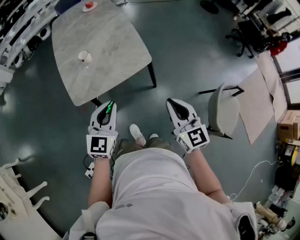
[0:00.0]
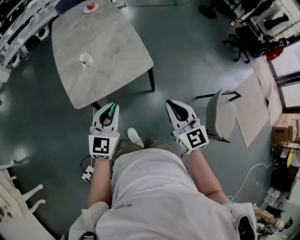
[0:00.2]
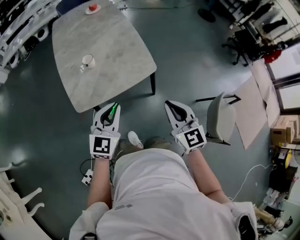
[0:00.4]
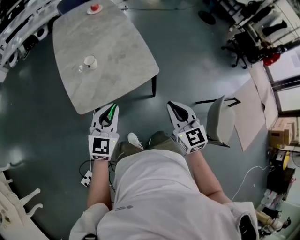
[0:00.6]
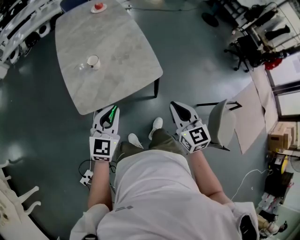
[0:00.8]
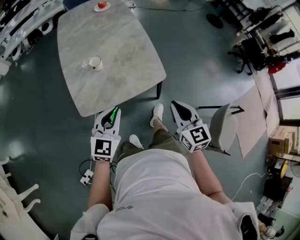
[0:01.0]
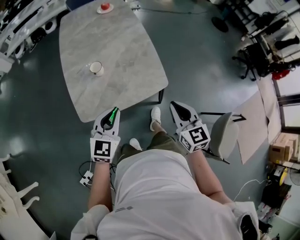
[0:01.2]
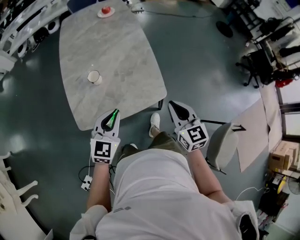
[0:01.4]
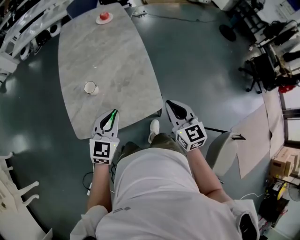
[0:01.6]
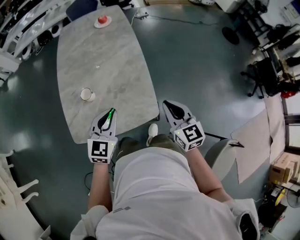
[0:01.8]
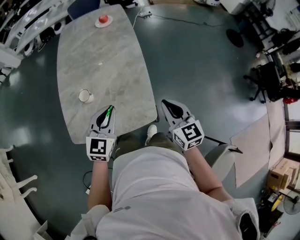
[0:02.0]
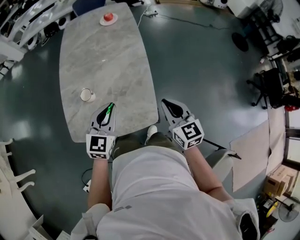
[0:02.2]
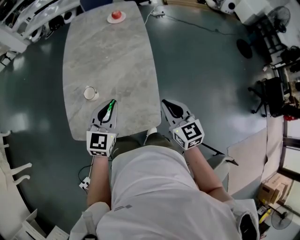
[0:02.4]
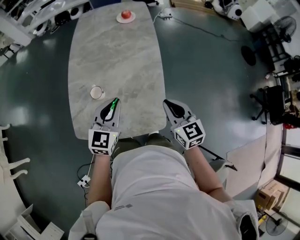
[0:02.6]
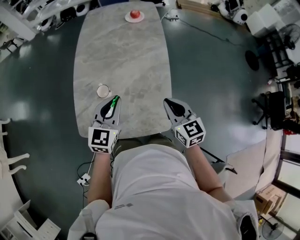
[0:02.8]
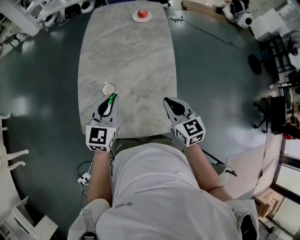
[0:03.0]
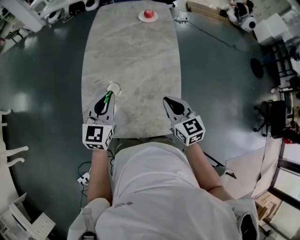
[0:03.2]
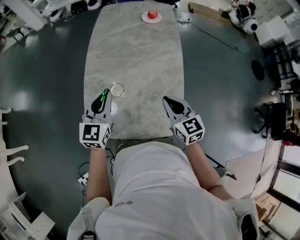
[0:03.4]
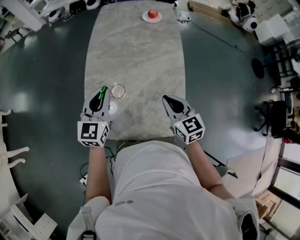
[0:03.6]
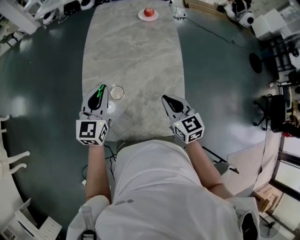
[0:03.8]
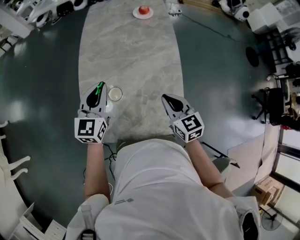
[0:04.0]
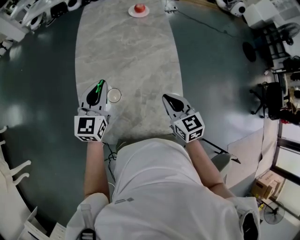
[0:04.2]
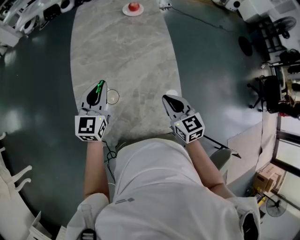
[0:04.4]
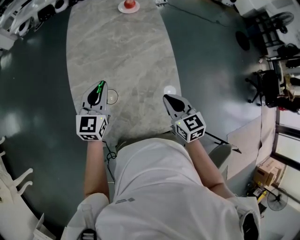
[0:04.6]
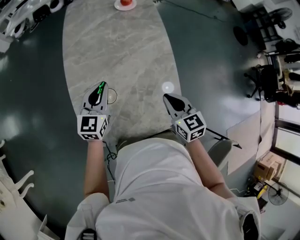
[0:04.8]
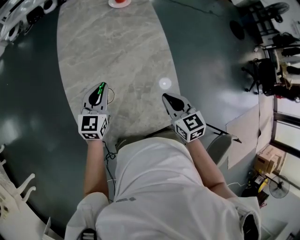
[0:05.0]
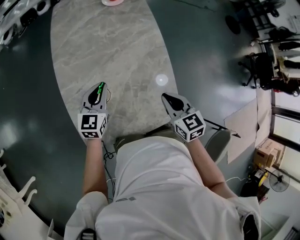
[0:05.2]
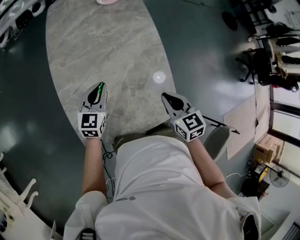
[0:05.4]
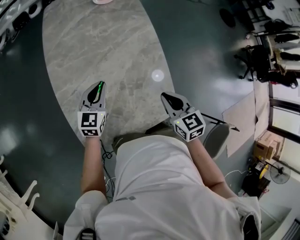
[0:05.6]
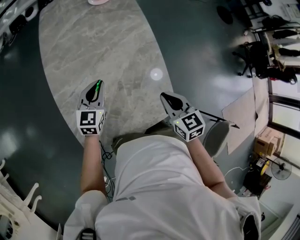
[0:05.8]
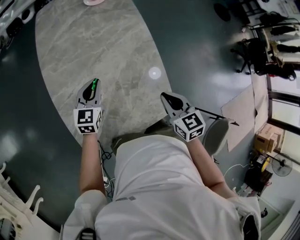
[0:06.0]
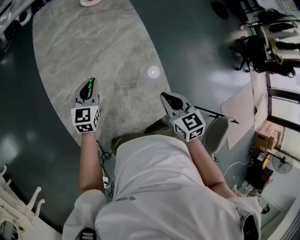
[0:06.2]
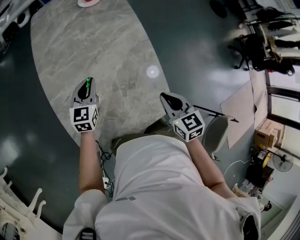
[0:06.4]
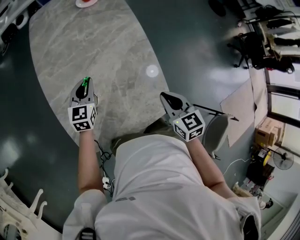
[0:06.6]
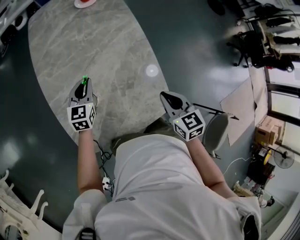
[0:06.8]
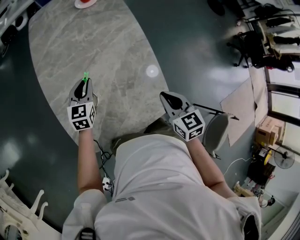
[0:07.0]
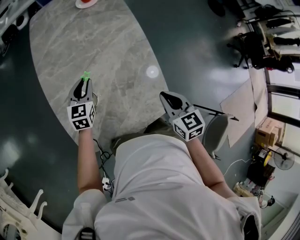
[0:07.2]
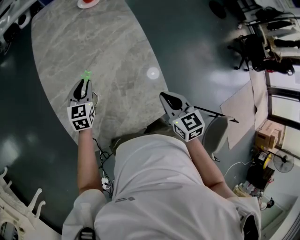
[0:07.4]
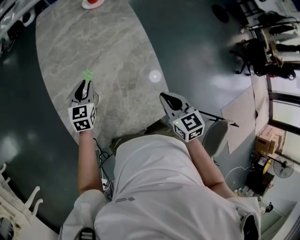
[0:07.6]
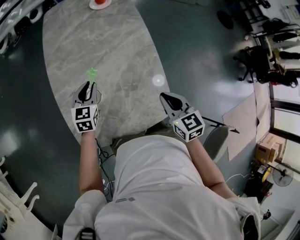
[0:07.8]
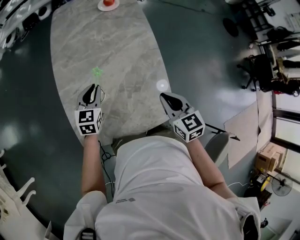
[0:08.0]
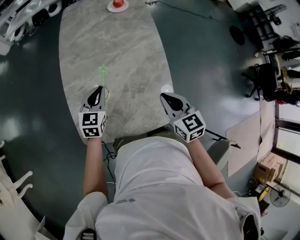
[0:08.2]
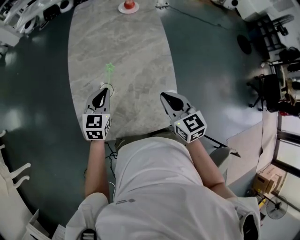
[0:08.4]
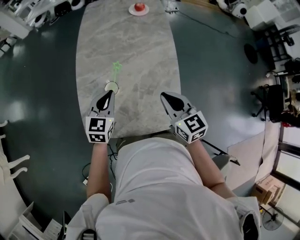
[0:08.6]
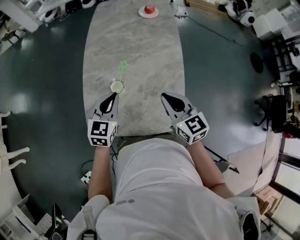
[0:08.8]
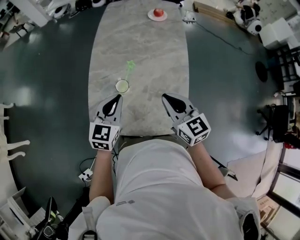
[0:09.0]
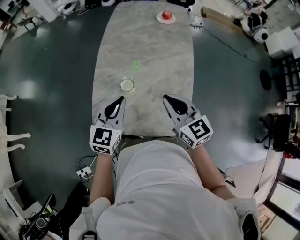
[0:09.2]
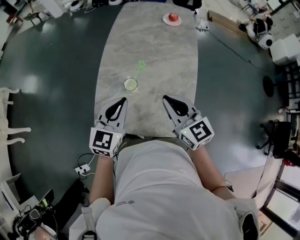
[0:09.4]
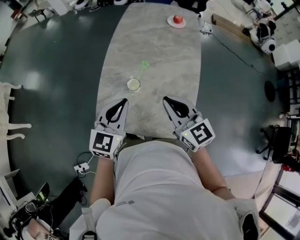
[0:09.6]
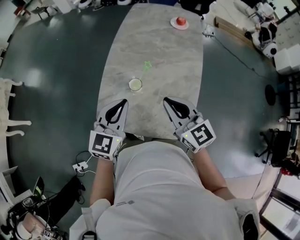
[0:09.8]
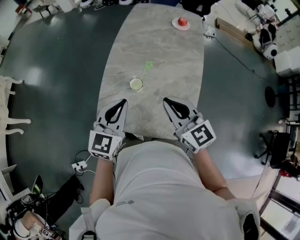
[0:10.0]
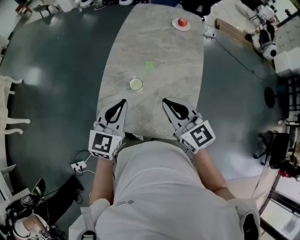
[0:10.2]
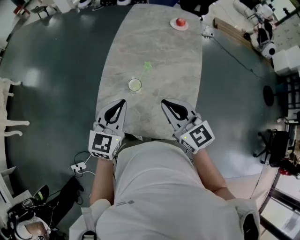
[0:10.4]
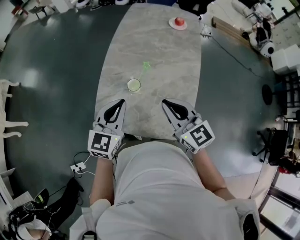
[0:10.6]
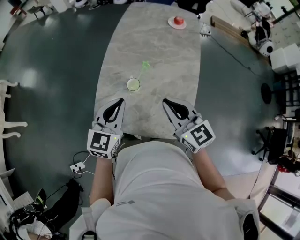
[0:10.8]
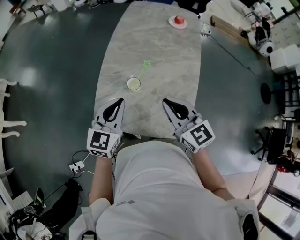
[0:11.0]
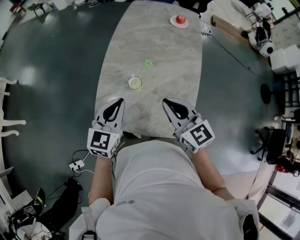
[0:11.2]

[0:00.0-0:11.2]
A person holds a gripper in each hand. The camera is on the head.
0:00.0 to 0:01.6: Both grippers travel together forward, about 25 cm.
0:01.6 to 0:03.2: Both grippers move forward and to the left, roughly 20 cm. The left gripper changes its angle by about 20 degrees. Meanwhile the right gripper turns by roughly 20 degrees.
0:03.2 to 0:04.8: The left gripper heads forward and downward, covering about 15 cm. Meanwhile the right gripper changes place by some 5 cm.
0:04.8 to 0:06.4: The right gripper heads to the right, covering some 5 cm. Meanwhile the left gripper is displaced downward by approximately 10 cm.
0:06.4 to 0:08.0: The left gripper changes place by approximately 5 cm.
0:08.0 to 0:09.6: The right gripper moves upward and to the left, roughly 15 cm, and turns by approximately 40 degrees; the left gripper goes roughly 25 cm upward and backward.
0:09.6 to 0:11.2: The grippers make only small movements.

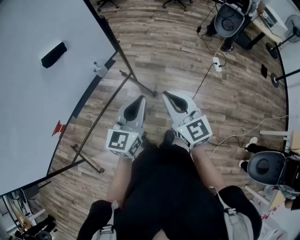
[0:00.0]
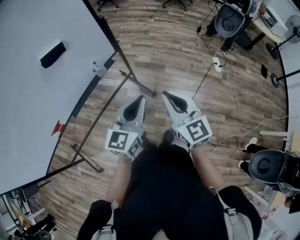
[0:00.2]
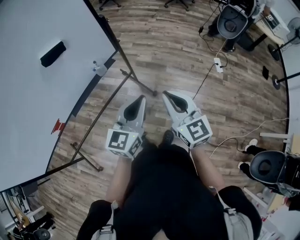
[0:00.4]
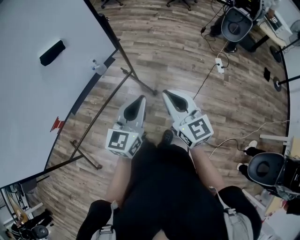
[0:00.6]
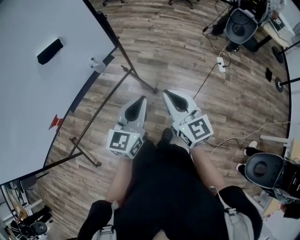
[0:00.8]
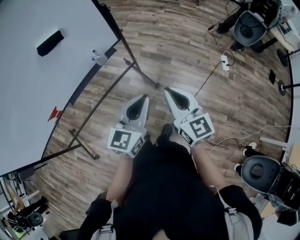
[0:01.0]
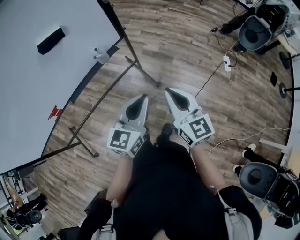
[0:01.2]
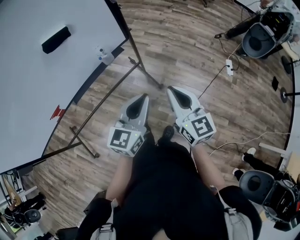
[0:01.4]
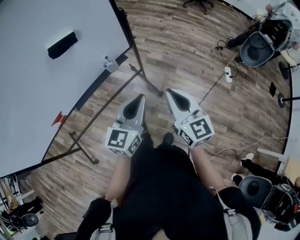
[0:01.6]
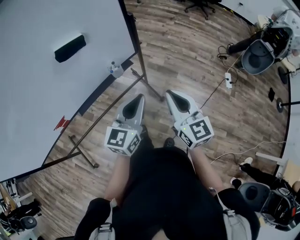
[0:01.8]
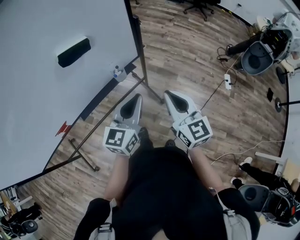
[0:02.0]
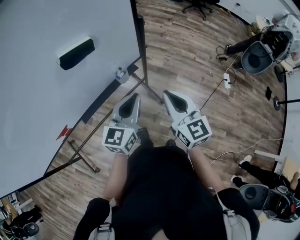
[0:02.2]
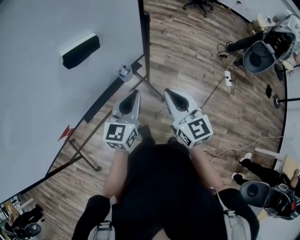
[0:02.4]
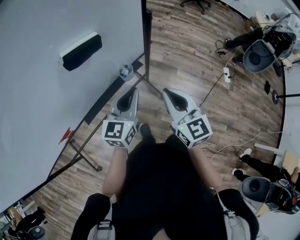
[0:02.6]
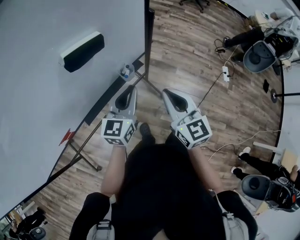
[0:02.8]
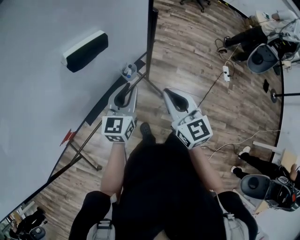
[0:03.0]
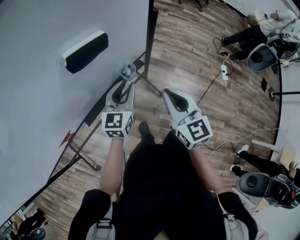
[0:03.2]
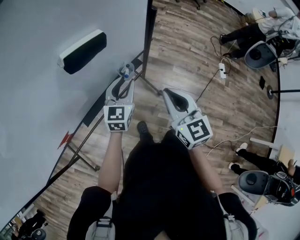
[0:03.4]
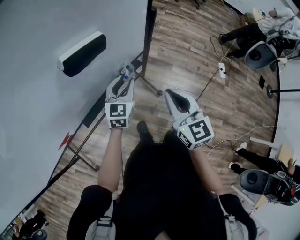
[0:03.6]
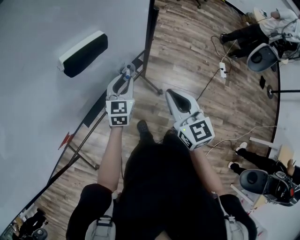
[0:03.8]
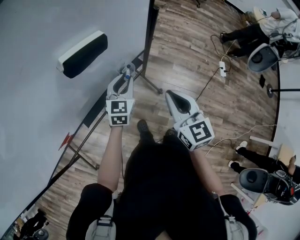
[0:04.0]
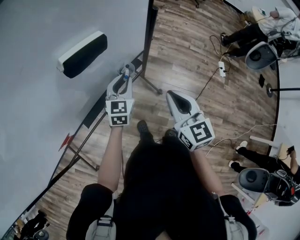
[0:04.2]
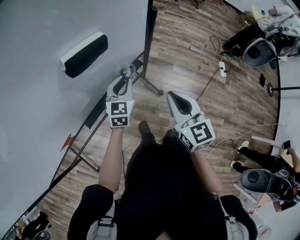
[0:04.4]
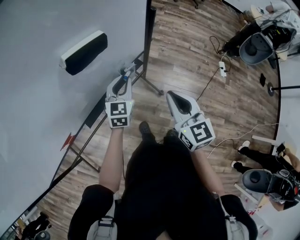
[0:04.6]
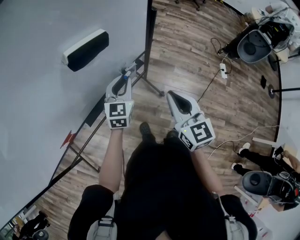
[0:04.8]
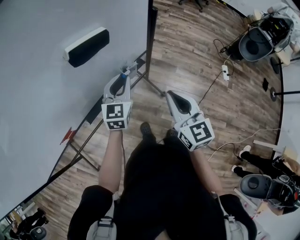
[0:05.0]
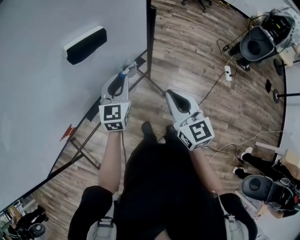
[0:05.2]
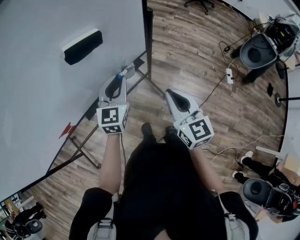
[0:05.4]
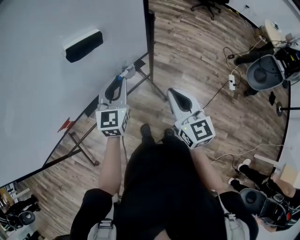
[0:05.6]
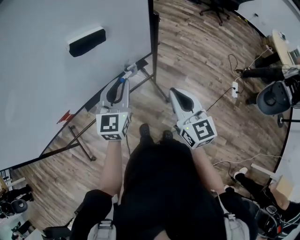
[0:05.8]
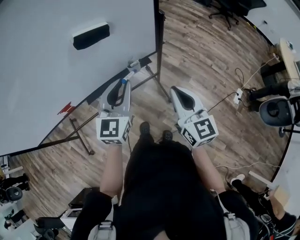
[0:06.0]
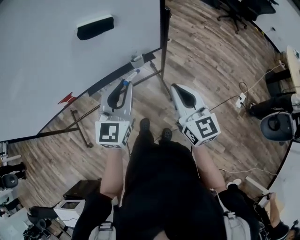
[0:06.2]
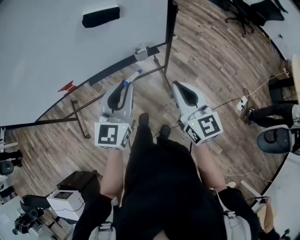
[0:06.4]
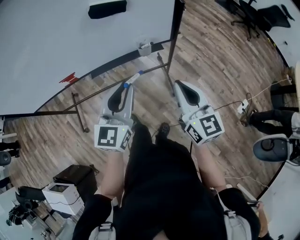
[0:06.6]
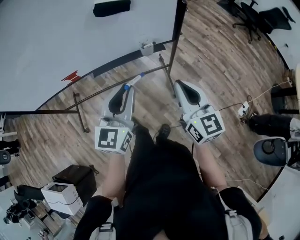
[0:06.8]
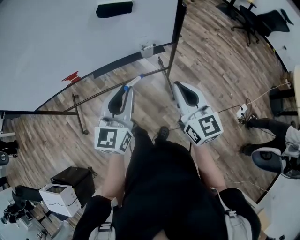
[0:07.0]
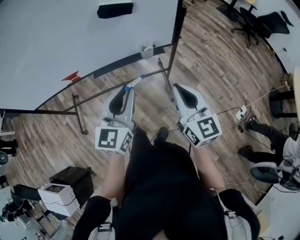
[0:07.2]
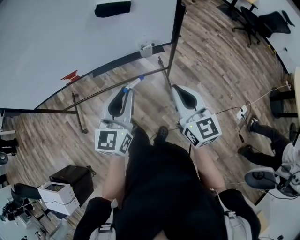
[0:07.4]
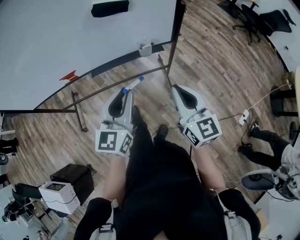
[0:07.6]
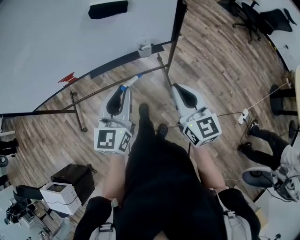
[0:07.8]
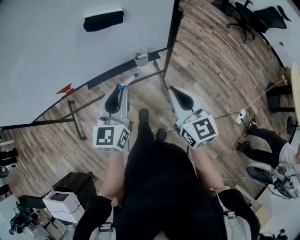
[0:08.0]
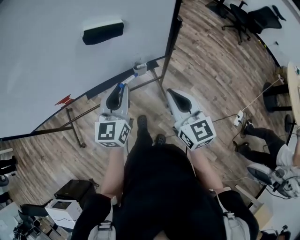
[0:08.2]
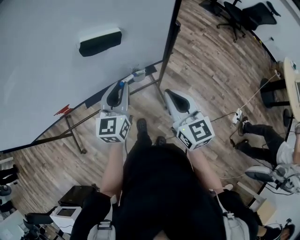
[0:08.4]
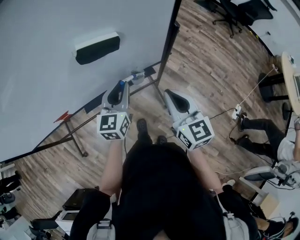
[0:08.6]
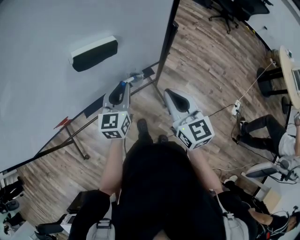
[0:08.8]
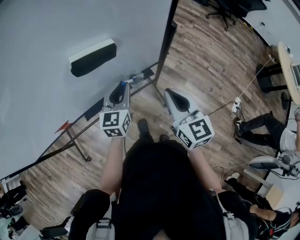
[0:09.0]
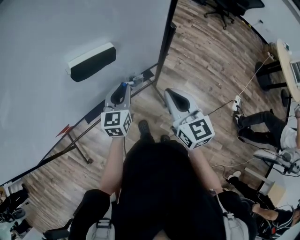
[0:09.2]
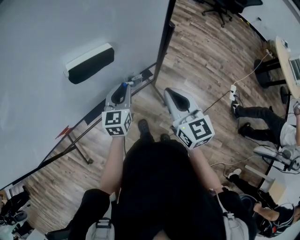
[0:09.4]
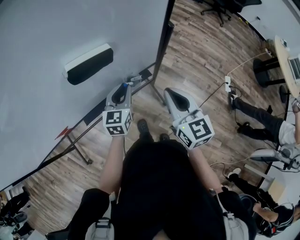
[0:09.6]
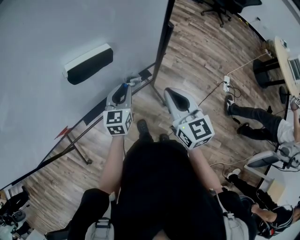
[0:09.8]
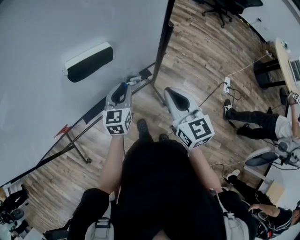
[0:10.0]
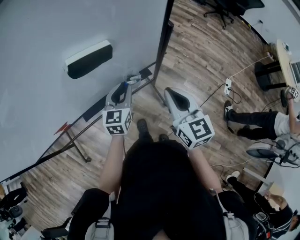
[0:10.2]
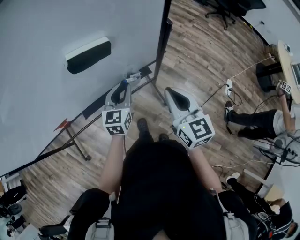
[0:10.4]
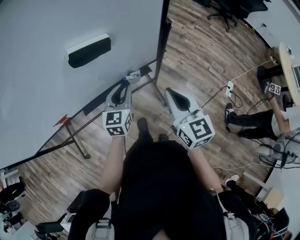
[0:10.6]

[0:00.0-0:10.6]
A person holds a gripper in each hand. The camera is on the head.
0:00.0 to 0:01.6: The grippers both shift forward by approximately 5 cm.
0:01.6 to 0:03.0: Both grippers move to the left and forward, approximately 20 cm.
0:03.0 to 0:04.6: The left gripper travels downward and forward by roughly 10 cm.
0:04.6 to 0:06.0: The left gripper is displaced upward and backward by approximately 20 cm. The right gripper shifts about 10 cm to the right.
0:06.0 to 0:07.6: The left gripper shifts roughly 10 cm backward.
0:07.6 to 0:09.0: The left gripper is displaced forward by some 25 cm. The right gripper goes about 15 cm forward.
0:09.0 to 0:10.6: The grippers make only small movements.

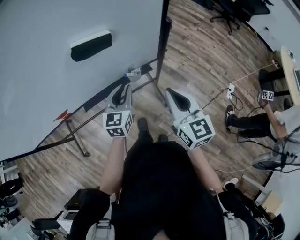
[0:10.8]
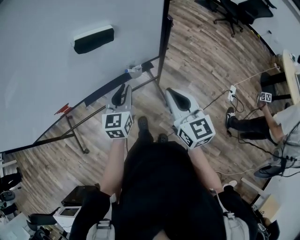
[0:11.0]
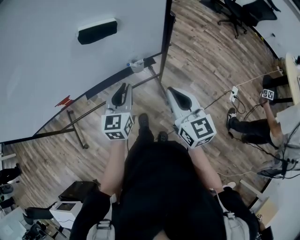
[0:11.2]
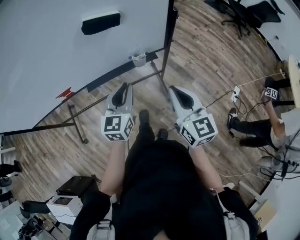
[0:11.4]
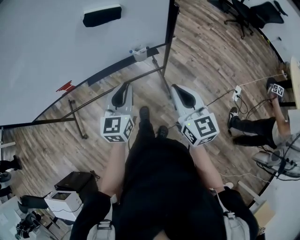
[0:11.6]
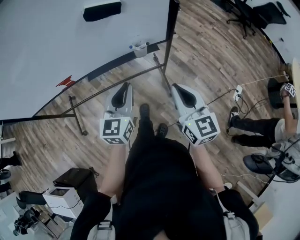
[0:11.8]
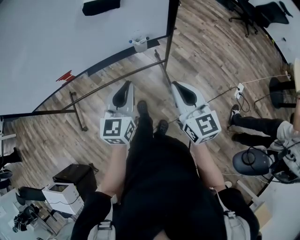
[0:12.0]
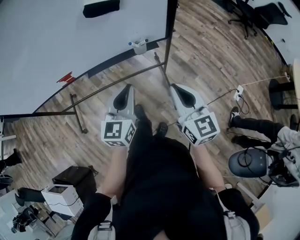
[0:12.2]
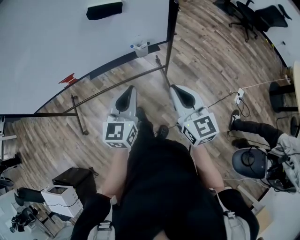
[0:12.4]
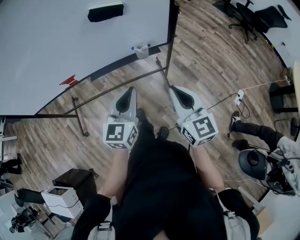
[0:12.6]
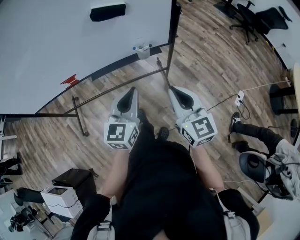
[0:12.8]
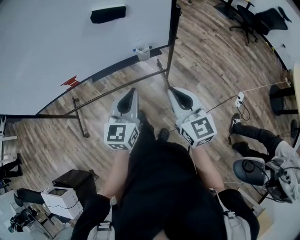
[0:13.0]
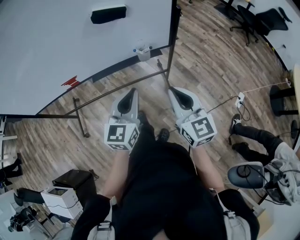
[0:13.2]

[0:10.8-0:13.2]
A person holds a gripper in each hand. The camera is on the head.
0:10.8 to 0:12.0: The two grippers go approximately 15 cm backward.
0:12.0 to 0:13.2: There are only small adjustments of the grippers.
